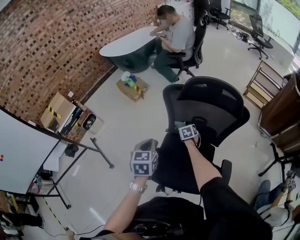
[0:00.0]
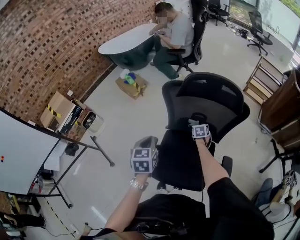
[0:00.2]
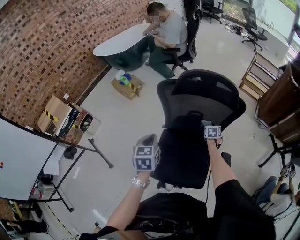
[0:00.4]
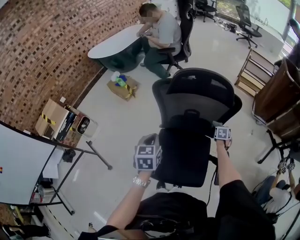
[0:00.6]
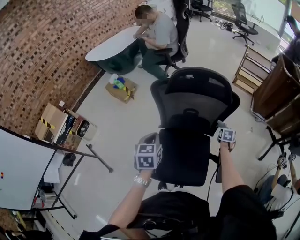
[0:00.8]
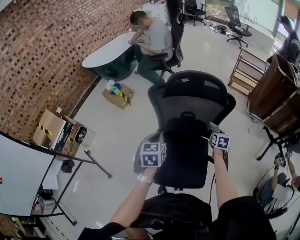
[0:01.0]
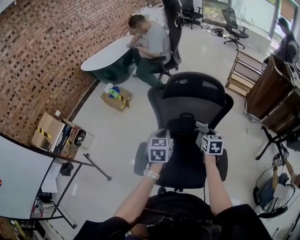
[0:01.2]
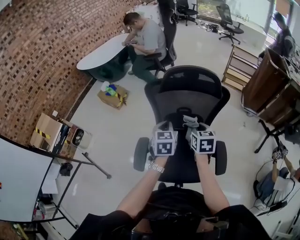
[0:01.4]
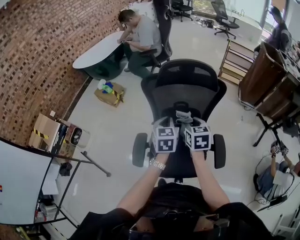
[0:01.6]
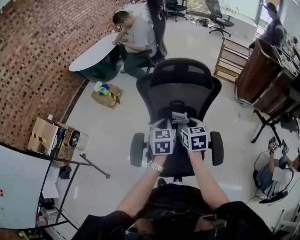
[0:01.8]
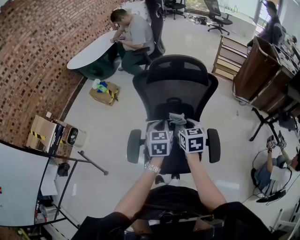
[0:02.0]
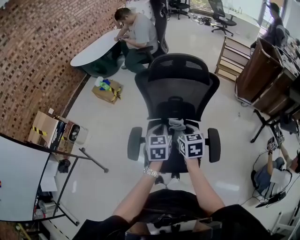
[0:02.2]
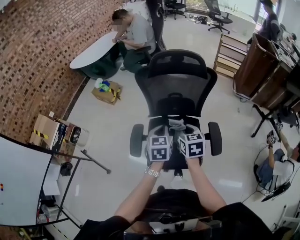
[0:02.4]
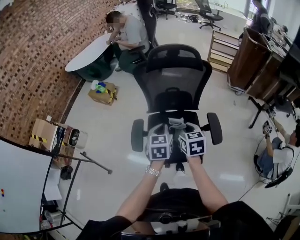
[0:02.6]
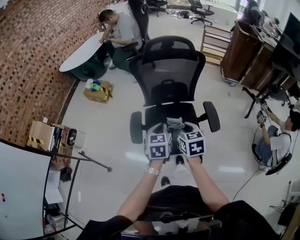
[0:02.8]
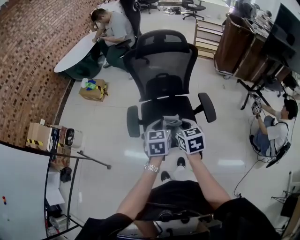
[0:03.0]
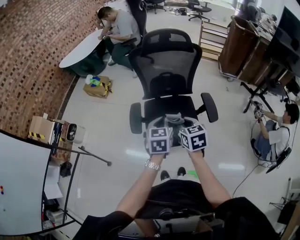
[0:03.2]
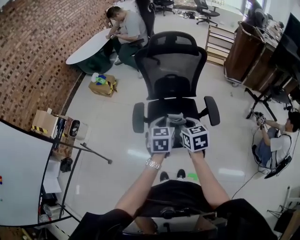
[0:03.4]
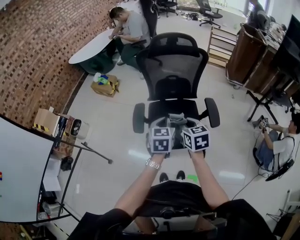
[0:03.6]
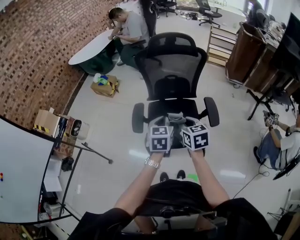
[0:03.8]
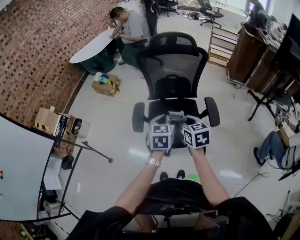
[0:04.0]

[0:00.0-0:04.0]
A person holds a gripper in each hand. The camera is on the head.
0:00.0 to 0:01.4: The right gripper travels upward and backward by roughly 30 cm, travels to the right and back again, roughly 35 cm each way, and changes its angle by approximately 30 degrees, while the left gripper heads to the right and forward, covering approximately 15 cm.
0:01.4 to 0:02.6: The grippers both shift backward by about 15 cm.
0:02.6 to 0:04.0: The two grippers go about 10 cm backward.

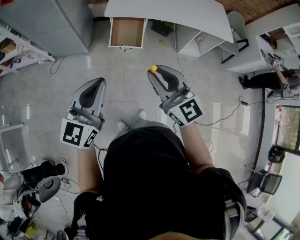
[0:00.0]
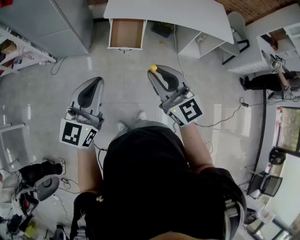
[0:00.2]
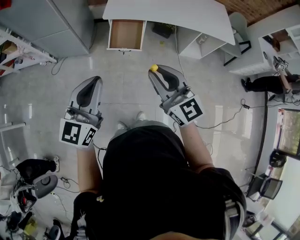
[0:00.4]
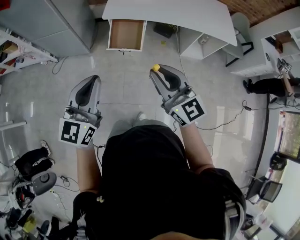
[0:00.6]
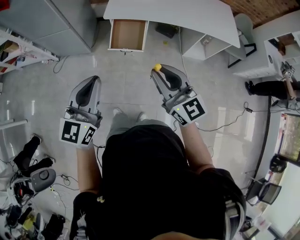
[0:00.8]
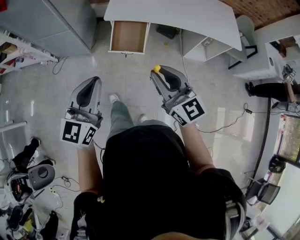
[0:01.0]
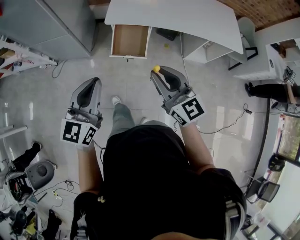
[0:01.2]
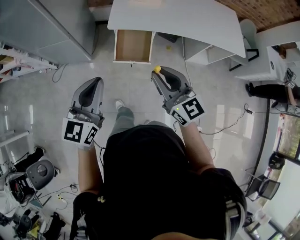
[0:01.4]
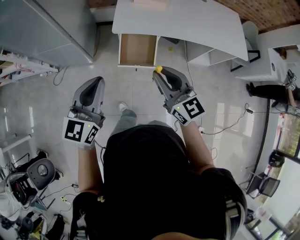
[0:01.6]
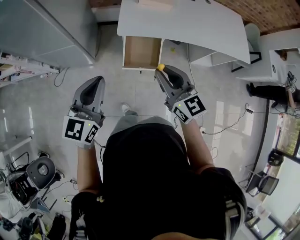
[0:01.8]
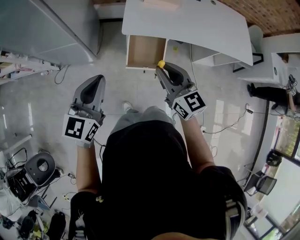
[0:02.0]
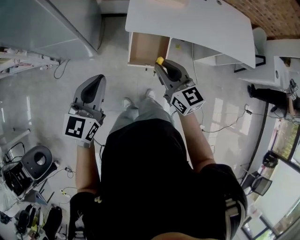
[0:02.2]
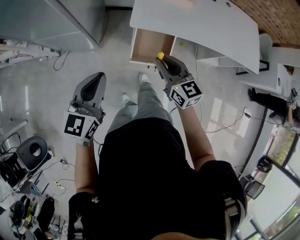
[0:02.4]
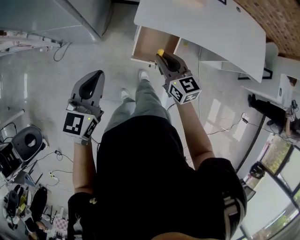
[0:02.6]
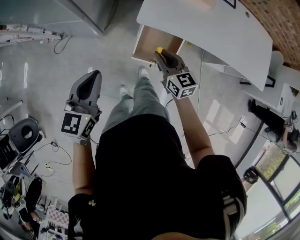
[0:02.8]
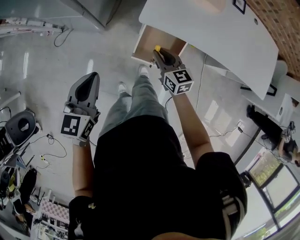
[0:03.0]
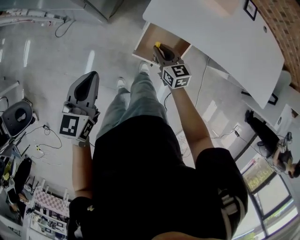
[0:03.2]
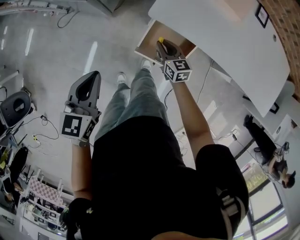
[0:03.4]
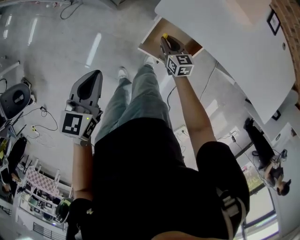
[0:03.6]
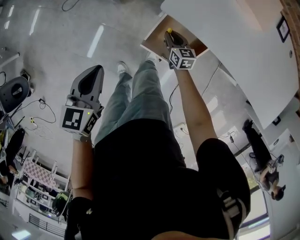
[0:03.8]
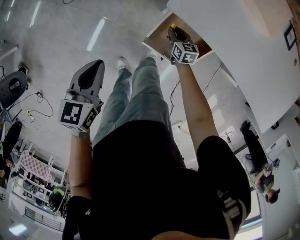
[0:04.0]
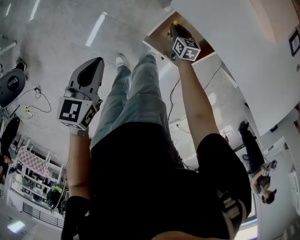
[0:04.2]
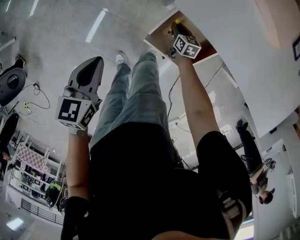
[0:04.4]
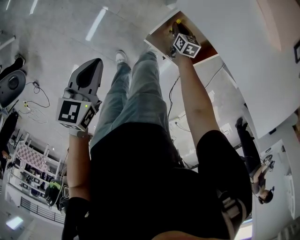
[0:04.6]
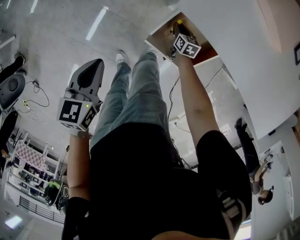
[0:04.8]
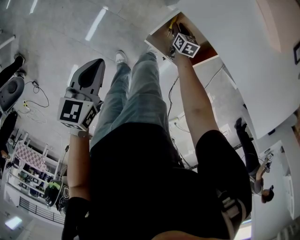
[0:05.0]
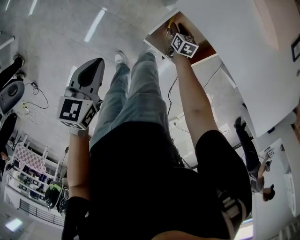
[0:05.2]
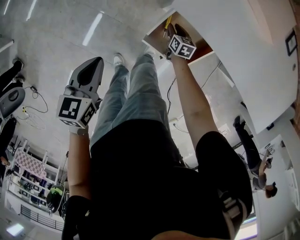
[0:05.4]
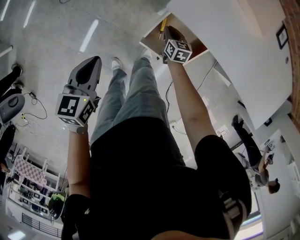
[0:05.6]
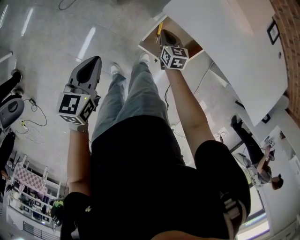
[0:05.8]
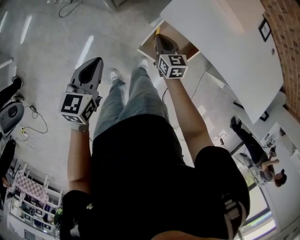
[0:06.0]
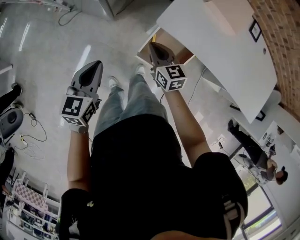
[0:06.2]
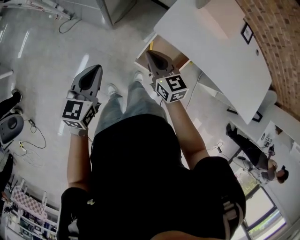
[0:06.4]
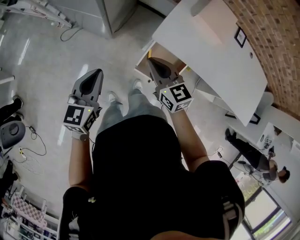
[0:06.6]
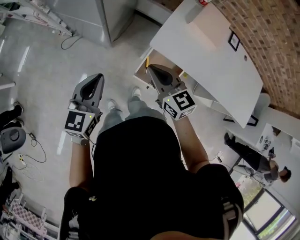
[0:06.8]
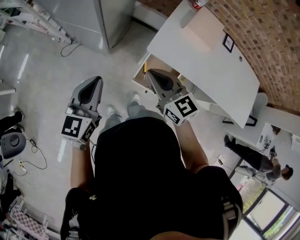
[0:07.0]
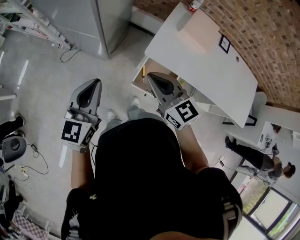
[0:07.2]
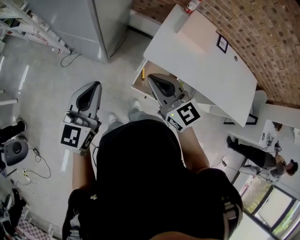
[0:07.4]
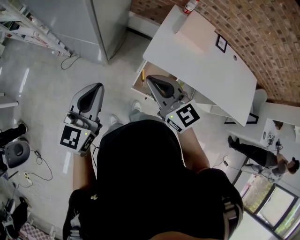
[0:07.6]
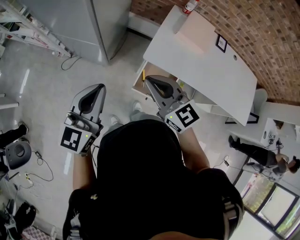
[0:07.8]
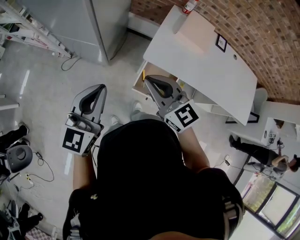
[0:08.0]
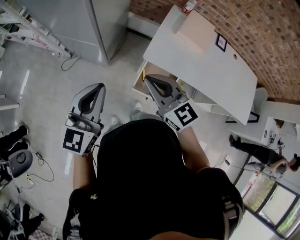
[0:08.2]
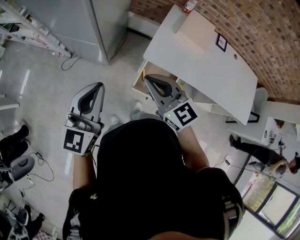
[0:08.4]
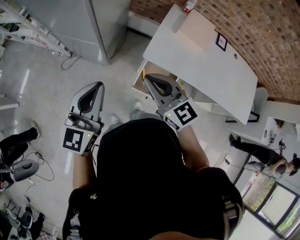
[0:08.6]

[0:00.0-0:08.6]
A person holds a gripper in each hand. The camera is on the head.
0:00.0 to 0:01.4: Both grippers move forward, some 20 cm.
0:01.4 to 0:02.8: The right gripper shifts about 35 cm forward and downward, and changes its angle by roughly 20 degrees. Meanwhile the left gripper goes about 25 cm forward, downward and to the left, and turns by approximately 20 degrees.
0:02.8 to 0:04.4: The left gripper shifts some 20 cm downward, and swivels some 30 degrees. The right gripper heads downward, covering some 40 cm, and rotates roughly 30 degrees.
0:04.4 to 0:05.8: The left gripper is displaced upward by approximately 5 cm. The right gripper travels upward by some 15 cm.
0:05.8 to 0:07.2: The left gripper travels upward by some 25 cm, and turns by some 30 degrees. Meanwhile the right gripper heads upward, covering roughly 40 cm, and rotates approximately 40 degrees.
0:07.2 to 0:08.6: The grippers make only small movements.

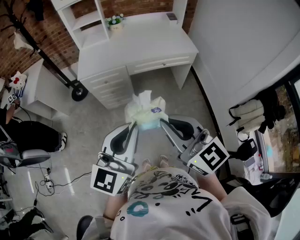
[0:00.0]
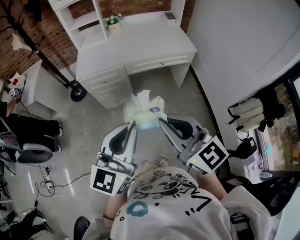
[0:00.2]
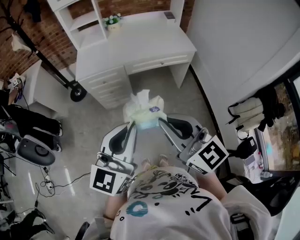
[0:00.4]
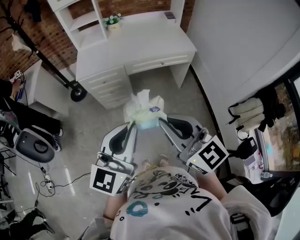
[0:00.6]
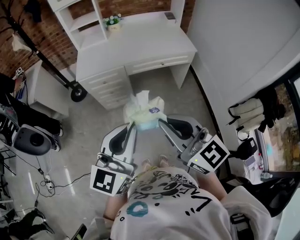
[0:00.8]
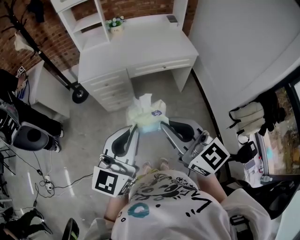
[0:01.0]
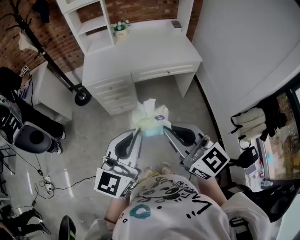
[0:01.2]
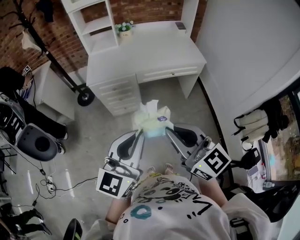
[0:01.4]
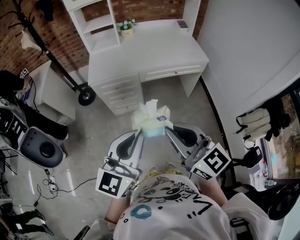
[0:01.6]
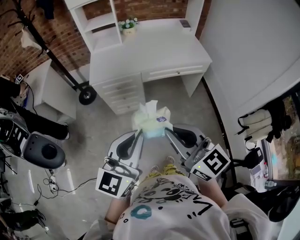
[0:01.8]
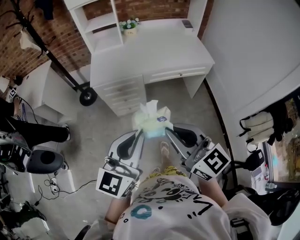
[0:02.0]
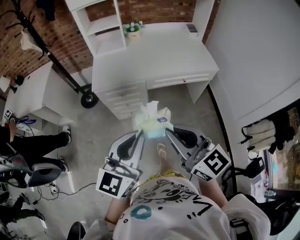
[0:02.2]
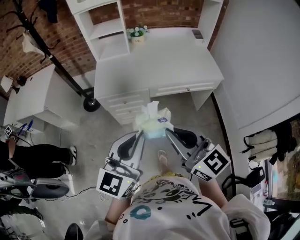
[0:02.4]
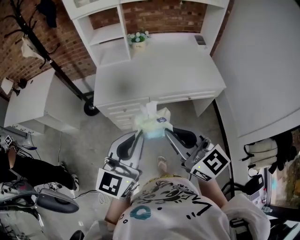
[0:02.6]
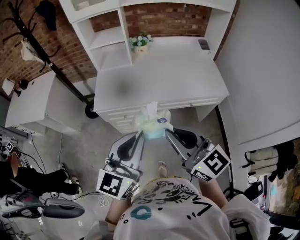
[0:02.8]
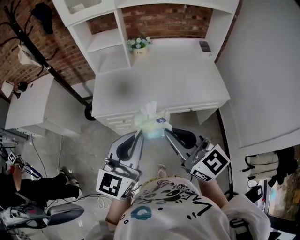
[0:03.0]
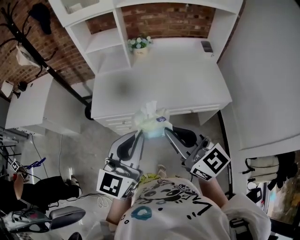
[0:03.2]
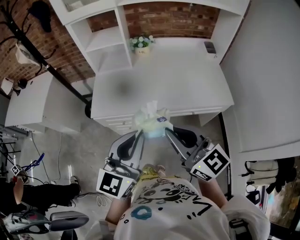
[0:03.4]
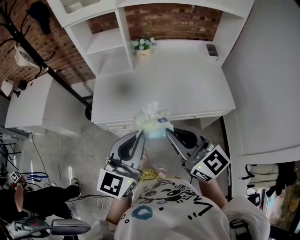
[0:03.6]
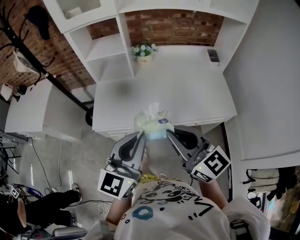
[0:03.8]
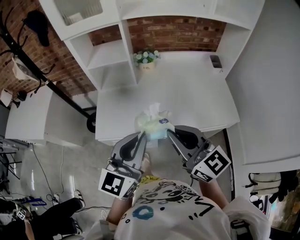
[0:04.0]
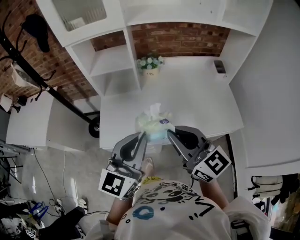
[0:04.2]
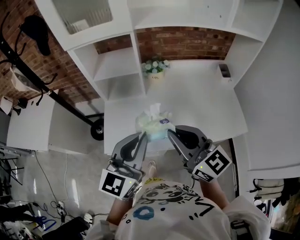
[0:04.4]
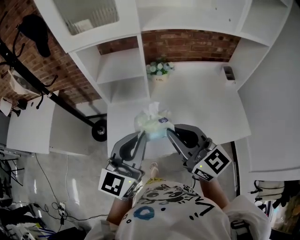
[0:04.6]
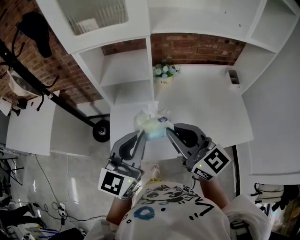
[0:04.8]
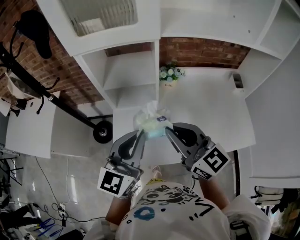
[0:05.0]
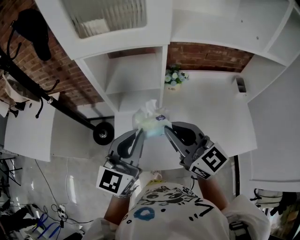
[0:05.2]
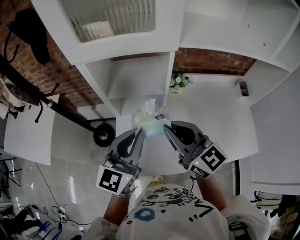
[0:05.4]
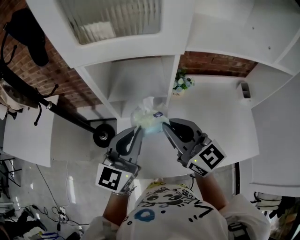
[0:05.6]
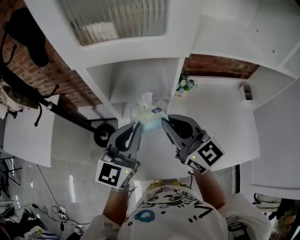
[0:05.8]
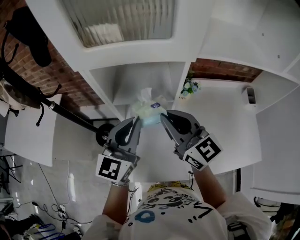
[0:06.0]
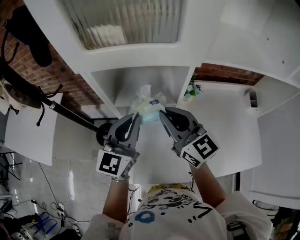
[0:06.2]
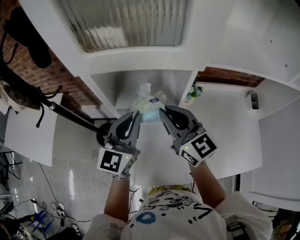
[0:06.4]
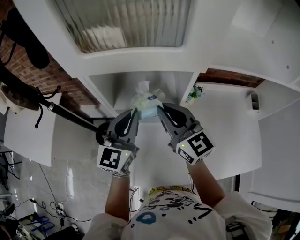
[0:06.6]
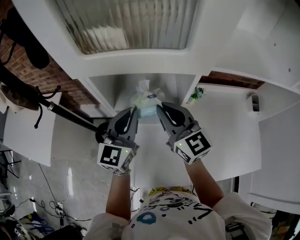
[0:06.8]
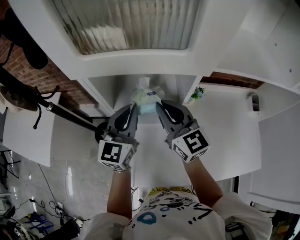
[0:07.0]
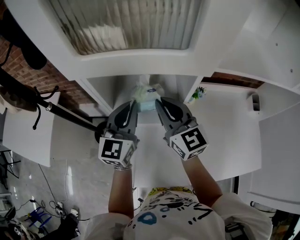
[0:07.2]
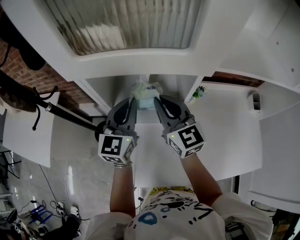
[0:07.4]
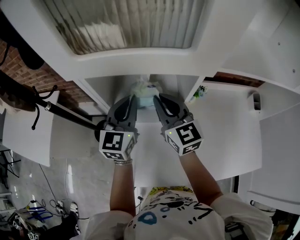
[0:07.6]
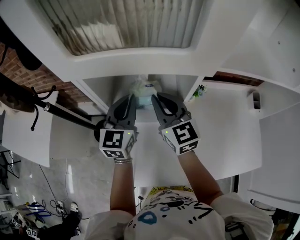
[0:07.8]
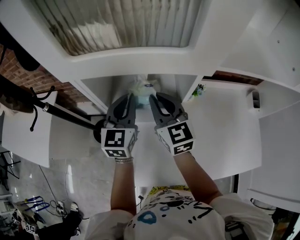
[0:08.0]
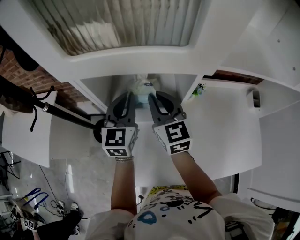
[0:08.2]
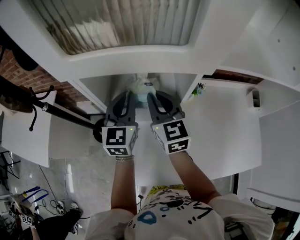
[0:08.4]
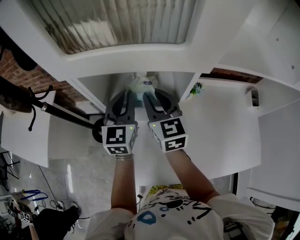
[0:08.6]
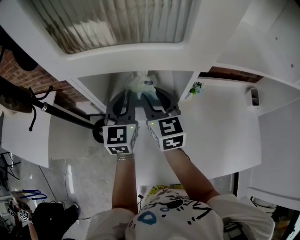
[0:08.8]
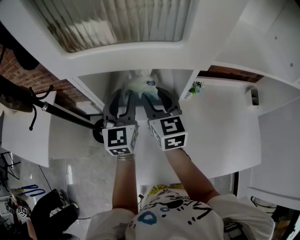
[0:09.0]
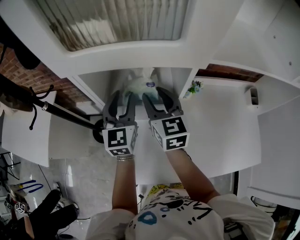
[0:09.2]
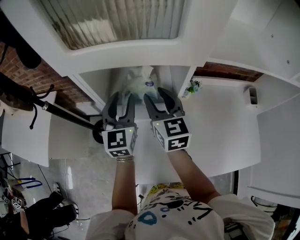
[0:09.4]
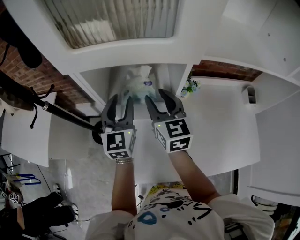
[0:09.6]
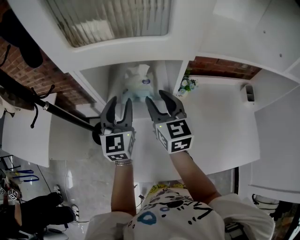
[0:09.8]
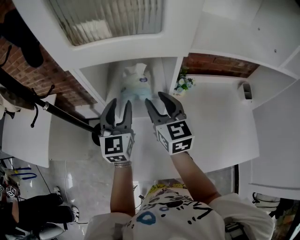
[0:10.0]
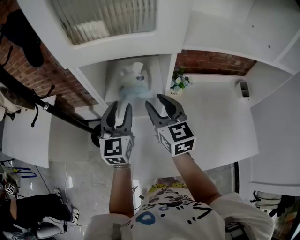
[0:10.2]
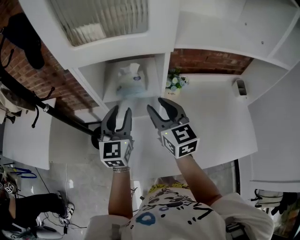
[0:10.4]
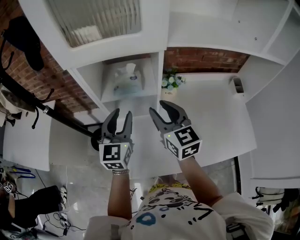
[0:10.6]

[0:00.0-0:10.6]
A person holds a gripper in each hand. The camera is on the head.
0:00.0 to 0:01.6: Both grippers move to the left, approximately 5 cm.
0:01.6 to 0:03.0: Both grippers travel together forward, some 30 cm.
0:03.0 to 0:04.6: Both grippers move forward, roughly 30 cm.
0:04.6 to 0:06.0: The two grippers go roughly 25 cm forward and to the left.
0:06.0 to 0:07.6: Both grippers move forward, roughly 10 cm.
0:07.6 to 0:09.0: The left gripper opens up, while the right gripper opens its fingers.
0:09.0 to 0:10.6: Both grippers move backward, roughly 15 cm.
